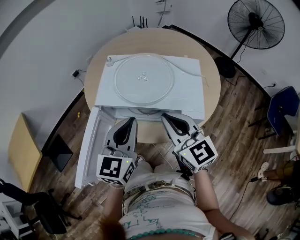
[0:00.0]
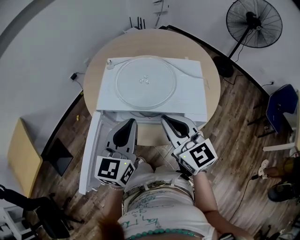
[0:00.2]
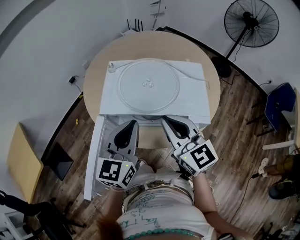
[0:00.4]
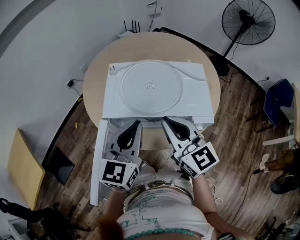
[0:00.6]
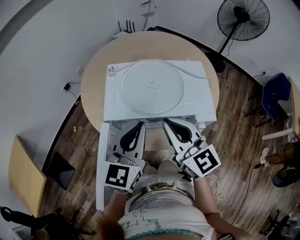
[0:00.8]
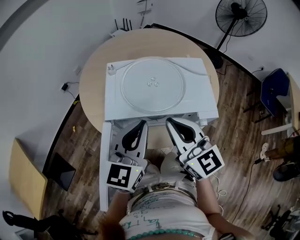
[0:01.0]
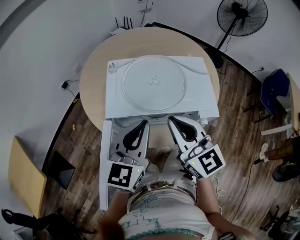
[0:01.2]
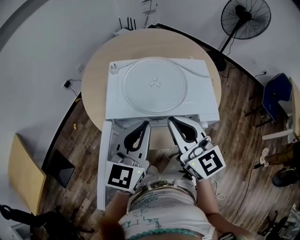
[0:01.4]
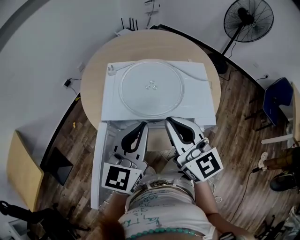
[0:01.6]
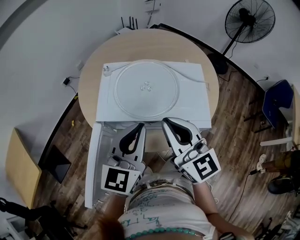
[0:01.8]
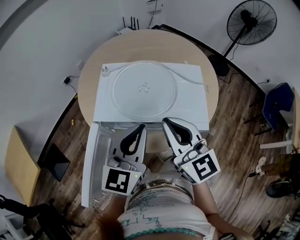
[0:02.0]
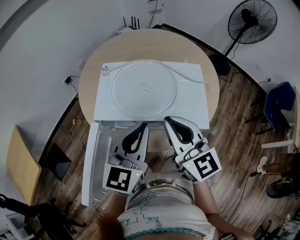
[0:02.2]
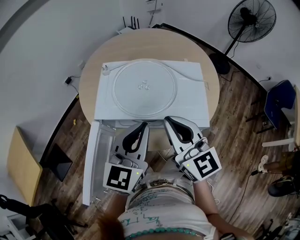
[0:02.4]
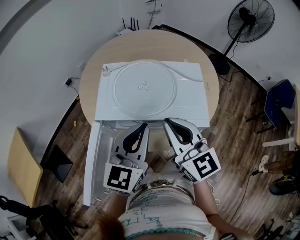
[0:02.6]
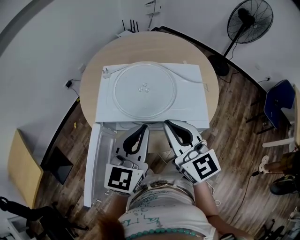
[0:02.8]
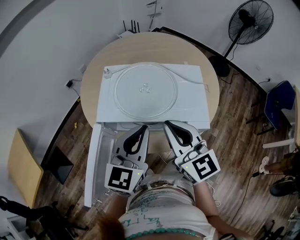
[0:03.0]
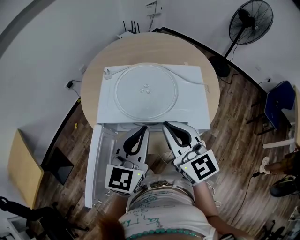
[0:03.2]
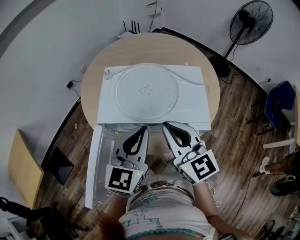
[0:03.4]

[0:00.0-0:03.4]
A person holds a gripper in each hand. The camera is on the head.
0:00.0 to 0:01.6: The right gripper shifts by roughly 5 cm.
0:01.6 to 0:03.4: There are only small adjustments of the grippers.

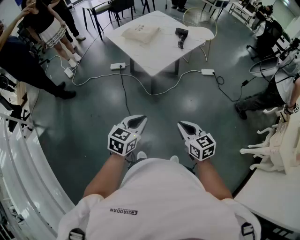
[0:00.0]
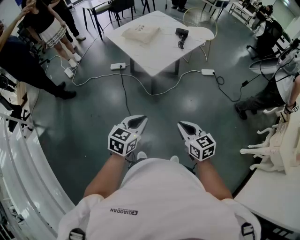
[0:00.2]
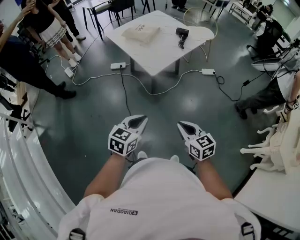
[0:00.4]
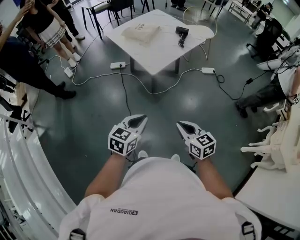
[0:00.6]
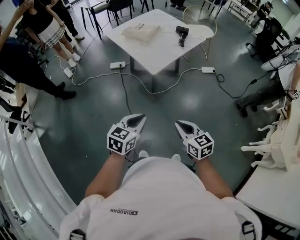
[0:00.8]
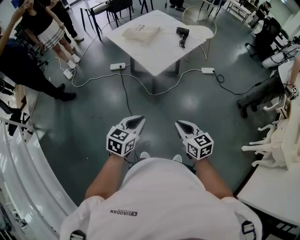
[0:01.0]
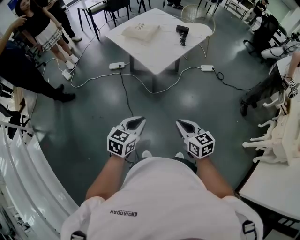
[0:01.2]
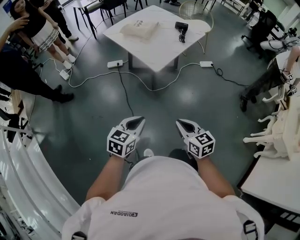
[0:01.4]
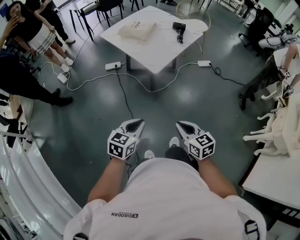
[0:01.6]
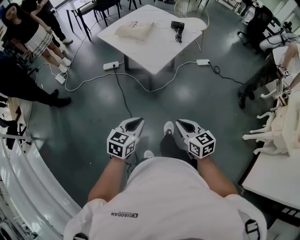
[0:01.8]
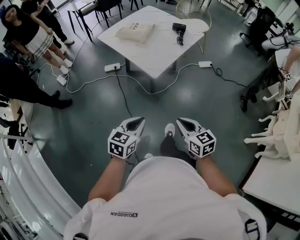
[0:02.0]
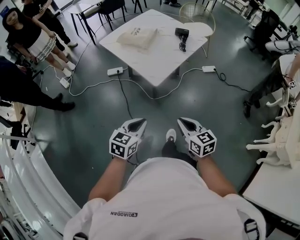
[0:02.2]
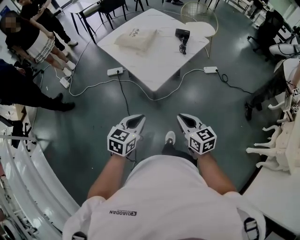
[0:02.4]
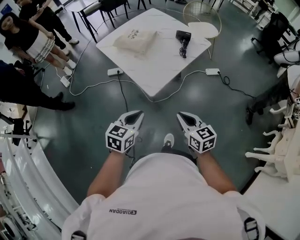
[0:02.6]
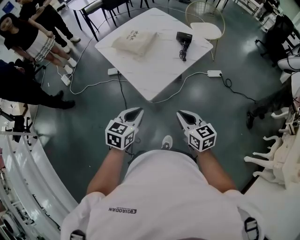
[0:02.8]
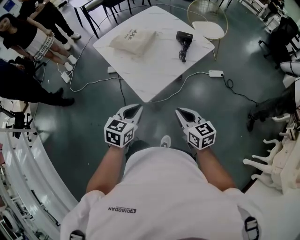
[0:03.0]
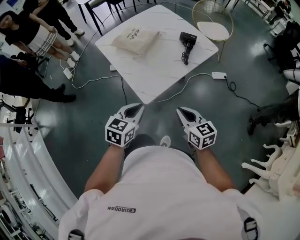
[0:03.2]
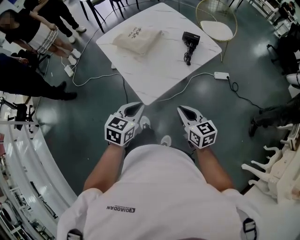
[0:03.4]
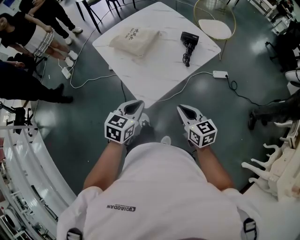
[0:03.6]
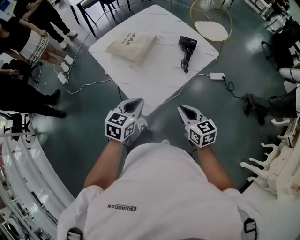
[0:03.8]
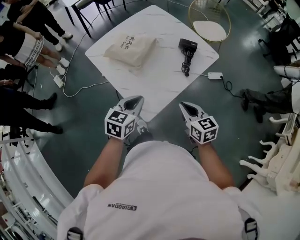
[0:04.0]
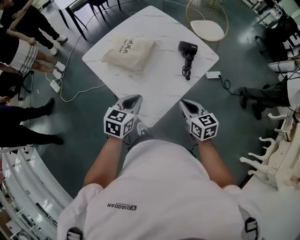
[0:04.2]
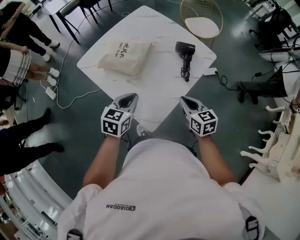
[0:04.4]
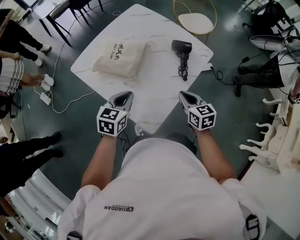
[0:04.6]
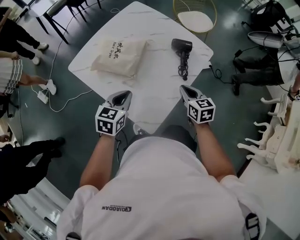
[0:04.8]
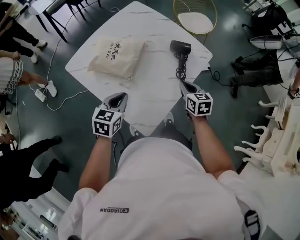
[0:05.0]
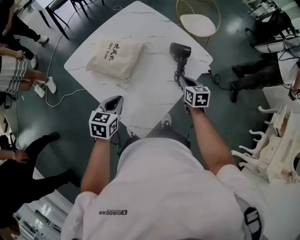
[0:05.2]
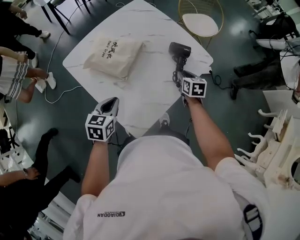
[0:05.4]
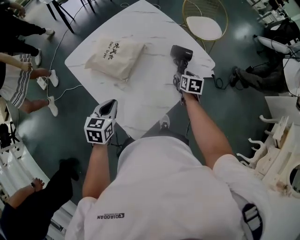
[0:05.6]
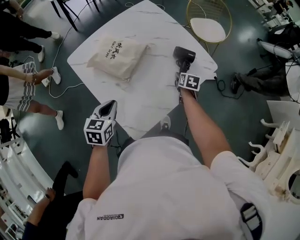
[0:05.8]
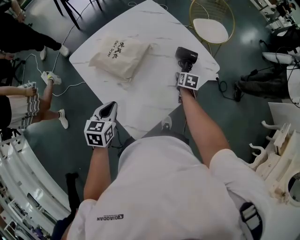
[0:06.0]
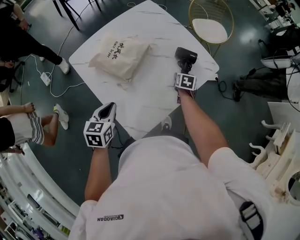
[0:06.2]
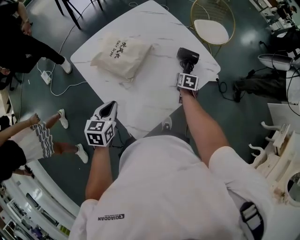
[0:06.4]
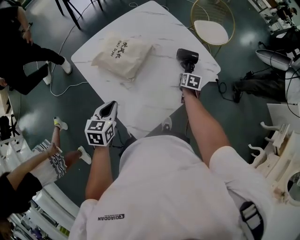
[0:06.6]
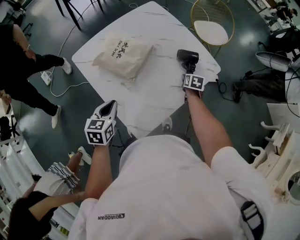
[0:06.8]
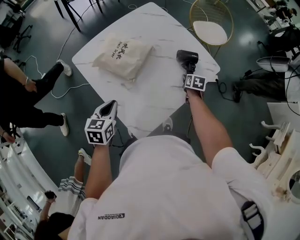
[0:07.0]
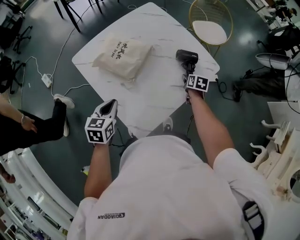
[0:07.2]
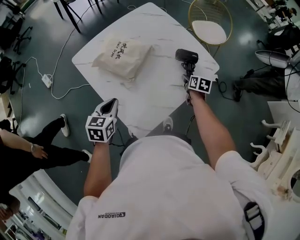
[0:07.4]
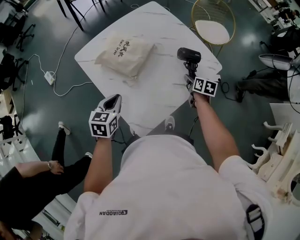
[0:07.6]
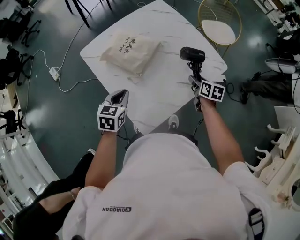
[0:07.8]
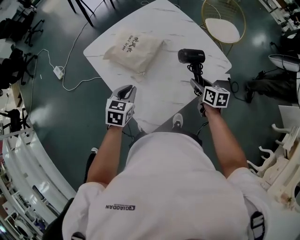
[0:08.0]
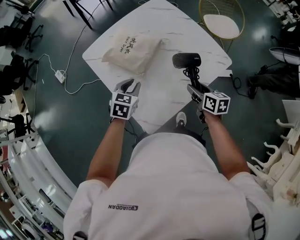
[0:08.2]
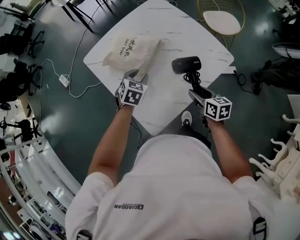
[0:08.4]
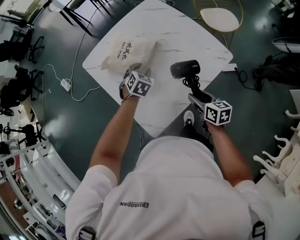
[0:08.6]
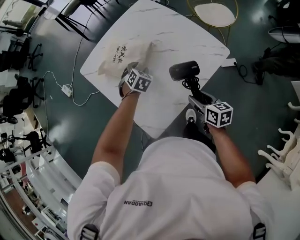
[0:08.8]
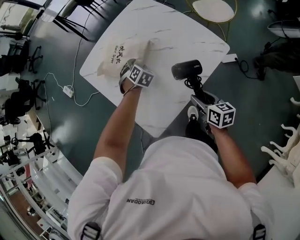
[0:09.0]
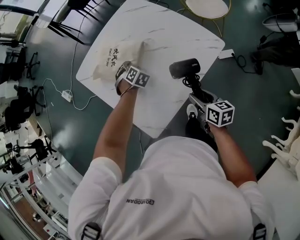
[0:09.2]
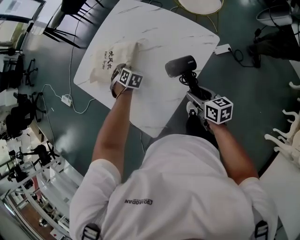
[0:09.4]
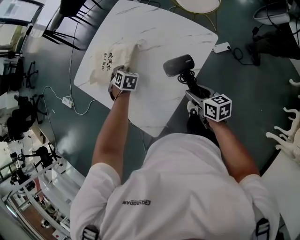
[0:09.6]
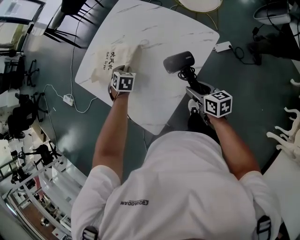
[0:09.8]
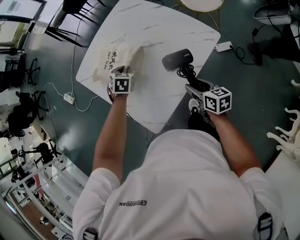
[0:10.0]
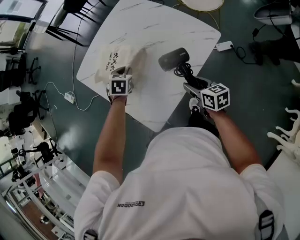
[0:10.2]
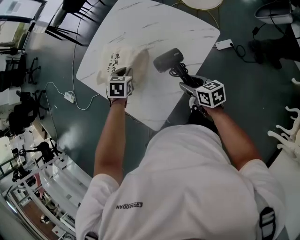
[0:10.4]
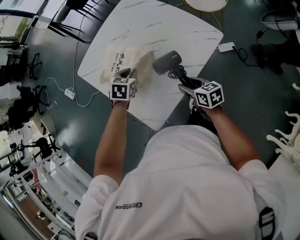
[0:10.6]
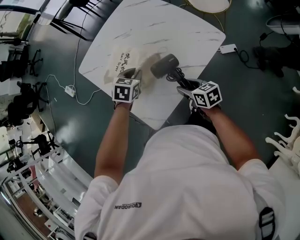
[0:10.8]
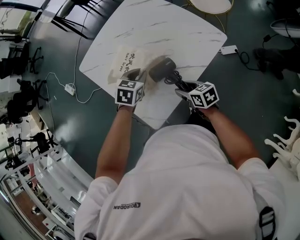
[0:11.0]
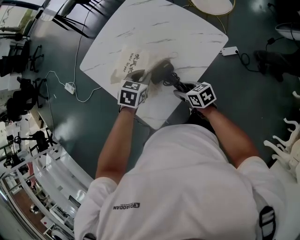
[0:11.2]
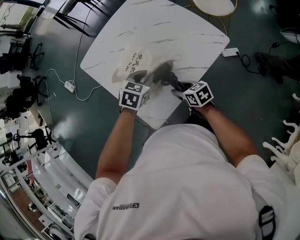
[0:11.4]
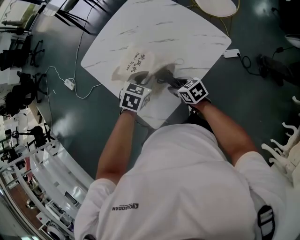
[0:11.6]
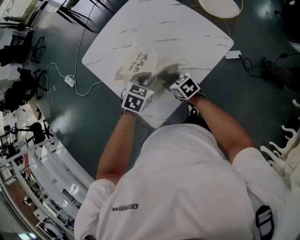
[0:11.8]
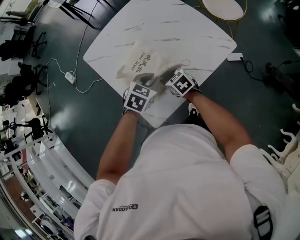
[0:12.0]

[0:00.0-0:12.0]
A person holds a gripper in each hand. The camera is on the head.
0:00.0 to 0:01.6: The two grippers go approximately 10 cm to the left.
0:01.6 to 0:03.0: The grippers both shift forward by some 35 cm.
0:03.0 to 0:04.4: Both grippers travel together forward, roughly 25 cm.
0:04.4 to 0:06.0: The left gripper shifts by about 5 cm, and rotates about 20 degrees. The right gripper travels forward and downward by roughly 30 cm, changes its angle by about 30 degrees, and opens its fingers.
0:06.0 to 0:07.6: The right gripper ends up some 5 cm from where it was.
0:07.6 to 0:09.0: The right gripper travels backward by some 15 cm. Meanwhile the left gripper shifts some 25 cm forward, to the right and downward, twists roughly 40 degrees clockwise, seen from behind, and opens up.
0:09.0 to 0:10.4: The left gripper travels upward and backward by some 10 cm, turns by approximately 30 degrees, and closes its fingers.
0:10.4 to 0:12.0: The left gripper shifts some 10 cm backward; the right gripper heads to the left, forward and downward, covering approximately 15 cm, and changes its angle by about 40 degrees.

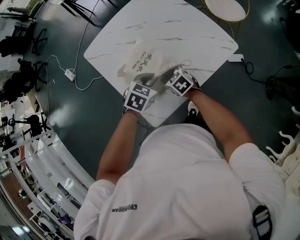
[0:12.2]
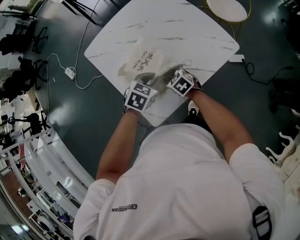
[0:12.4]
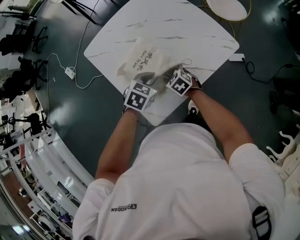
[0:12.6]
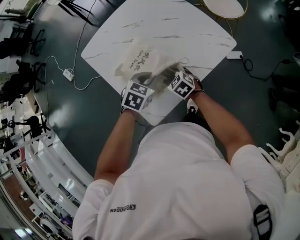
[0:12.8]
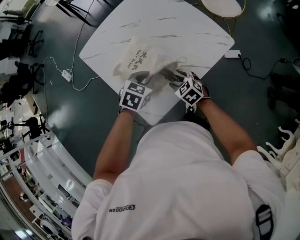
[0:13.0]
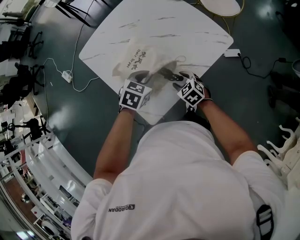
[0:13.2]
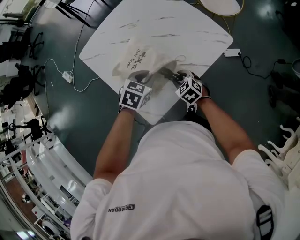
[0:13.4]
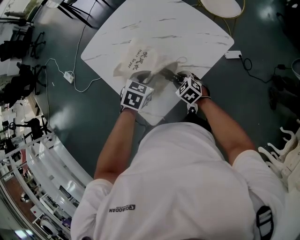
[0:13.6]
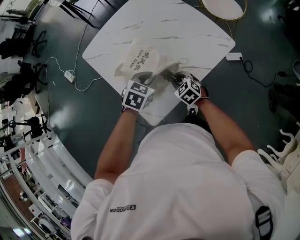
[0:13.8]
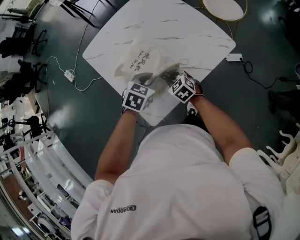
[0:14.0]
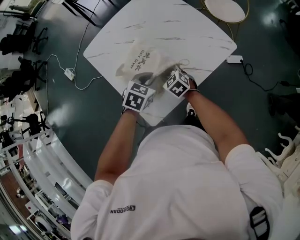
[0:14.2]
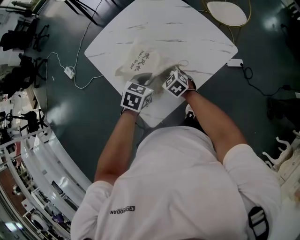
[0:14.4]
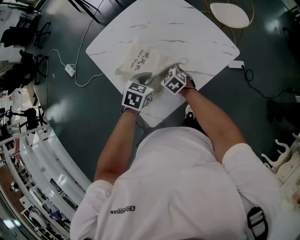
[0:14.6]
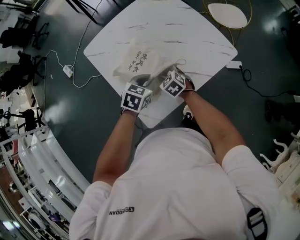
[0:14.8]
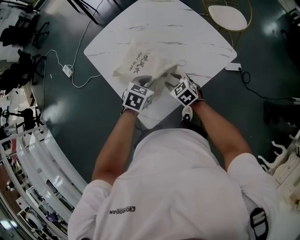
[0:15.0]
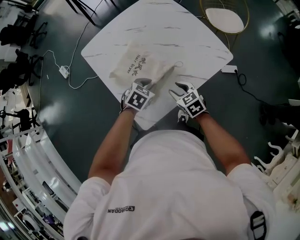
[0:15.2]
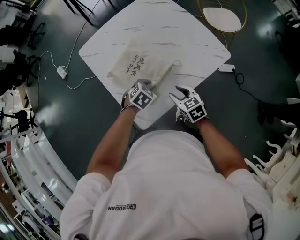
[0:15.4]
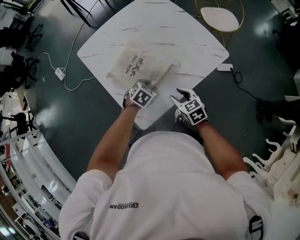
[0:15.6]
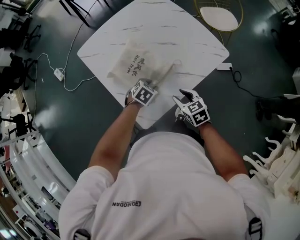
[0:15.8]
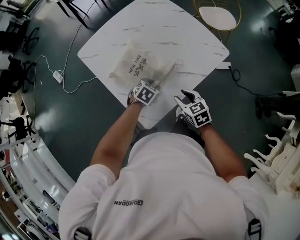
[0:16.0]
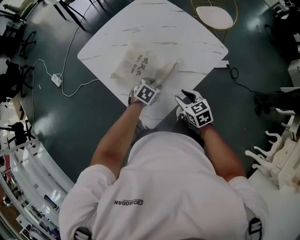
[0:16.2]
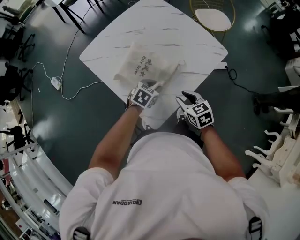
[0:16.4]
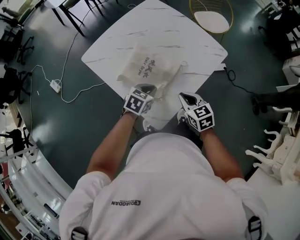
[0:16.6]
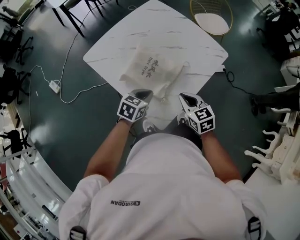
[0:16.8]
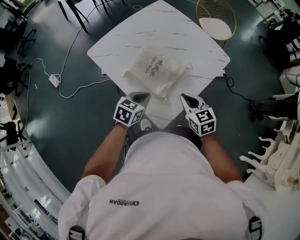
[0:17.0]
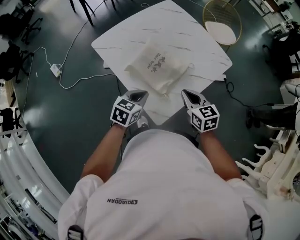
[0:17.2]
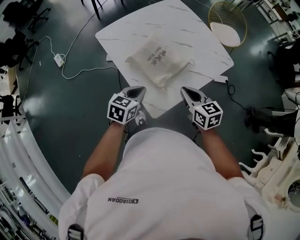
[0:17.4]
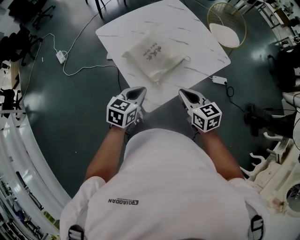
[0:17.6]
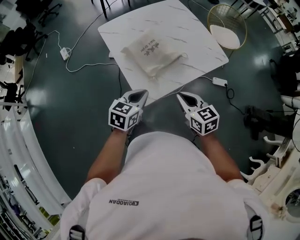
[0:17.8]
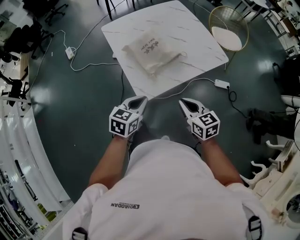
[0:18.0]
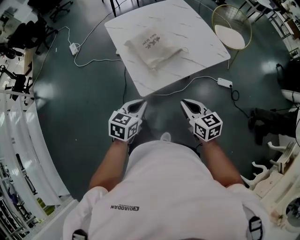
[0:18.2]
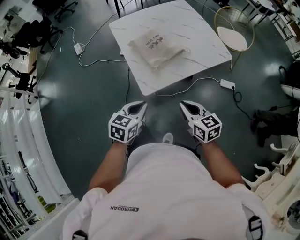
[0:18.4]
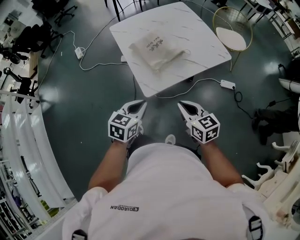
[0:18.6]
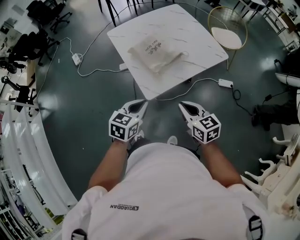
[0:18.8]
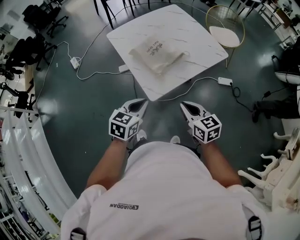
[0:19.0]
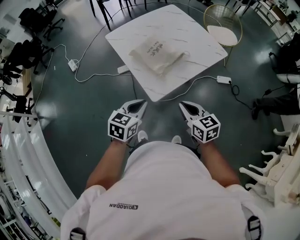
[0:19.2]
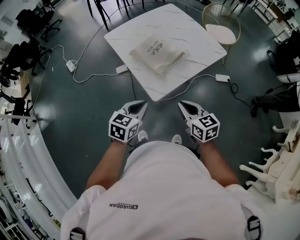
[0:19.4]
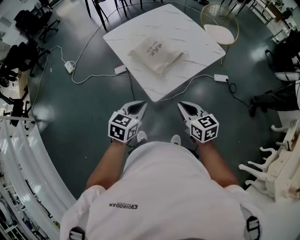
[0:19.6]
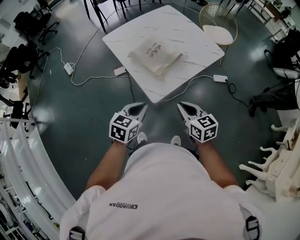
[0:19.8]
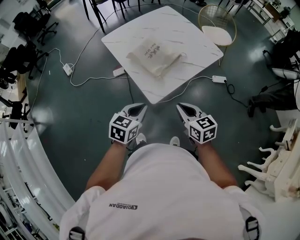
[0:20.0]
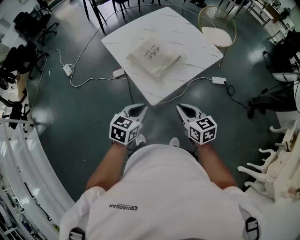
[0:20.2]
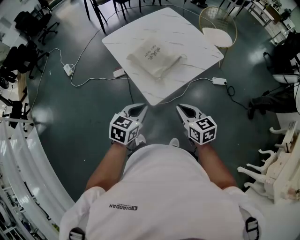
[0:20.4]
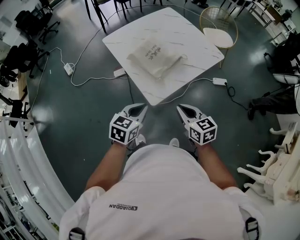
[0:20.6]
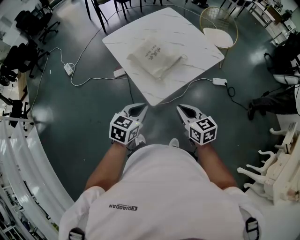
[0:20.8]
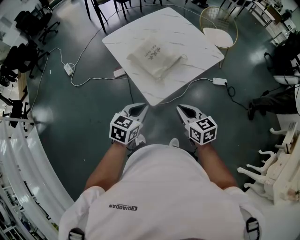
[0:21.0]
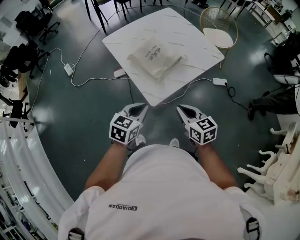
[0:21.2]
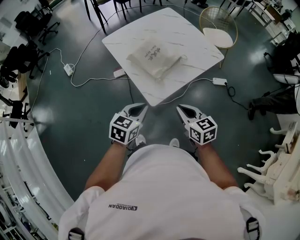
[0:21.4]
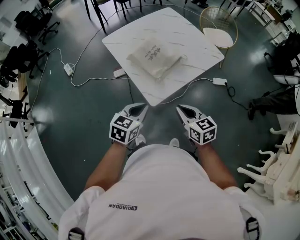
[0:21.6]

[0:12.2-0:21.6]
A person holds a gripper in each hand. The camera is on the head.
0:12.2 to 0:13.8: The right gripper heads to the right, covering some 5 cm.
0:13.8 to 0:15.4: The right gripper moves about 5 cm forward and comes back; the left gripper heads downward, covering some 10 cm.
0:15.4 to 0:17.0: The left gripper goes roughly 20 cm to the left, upward and backward, swivels some 30 degrees, and closes up. Meanwhile the right gripper shifts some 15 cm upward, to the left and backward, and closes its fingers.
0:17.0 to 0:18.4: The left gripper changes place by roughly 30 cm, and swivels some 30 degrees. The right gripper changes place by some 25 cm, and turns by about 30 degrees.
0:18.4 to 0:20.0: The grippers both shift to the left by some 10 cm.
0:20.0 to 0:21.6: The grippers stay close to where they were, moving slightly.
